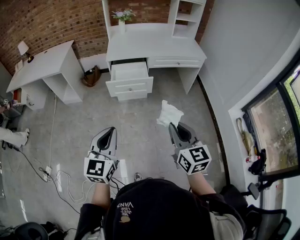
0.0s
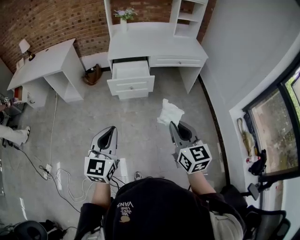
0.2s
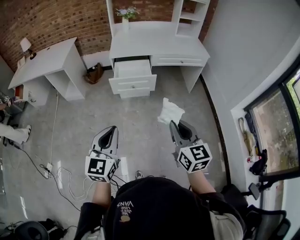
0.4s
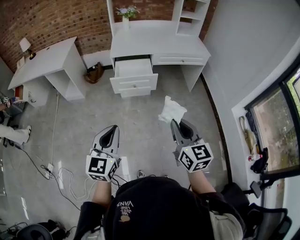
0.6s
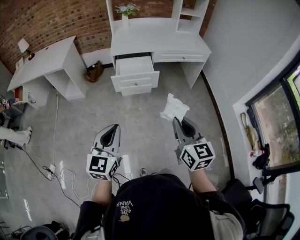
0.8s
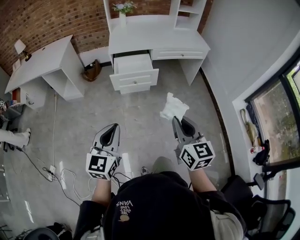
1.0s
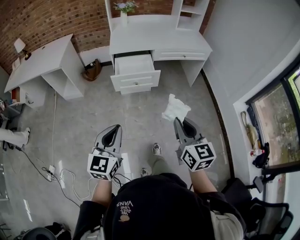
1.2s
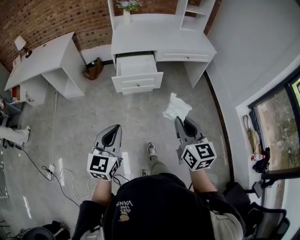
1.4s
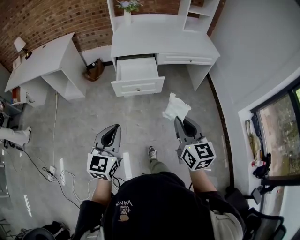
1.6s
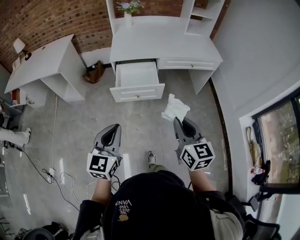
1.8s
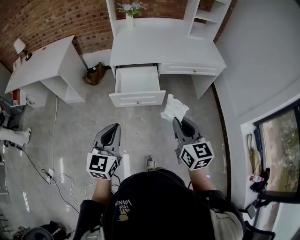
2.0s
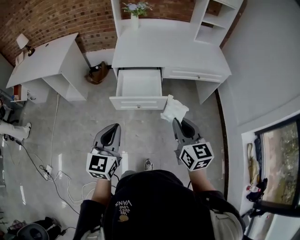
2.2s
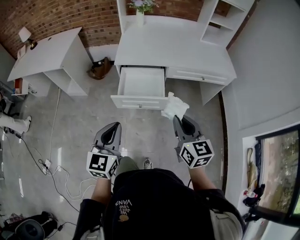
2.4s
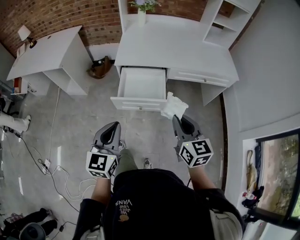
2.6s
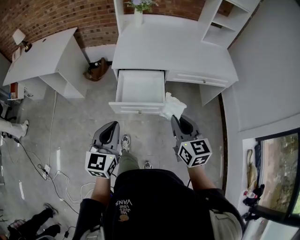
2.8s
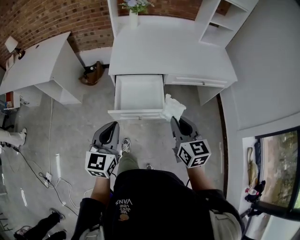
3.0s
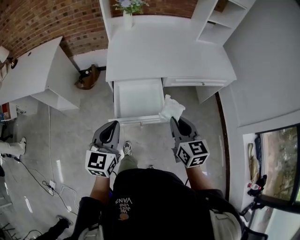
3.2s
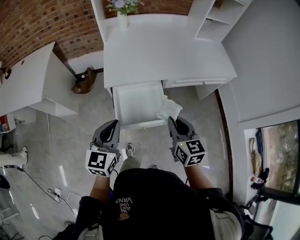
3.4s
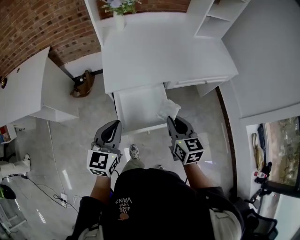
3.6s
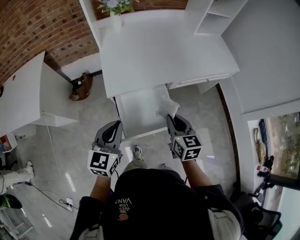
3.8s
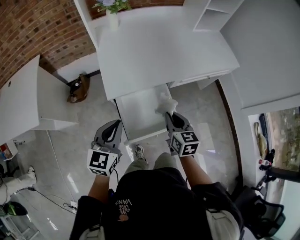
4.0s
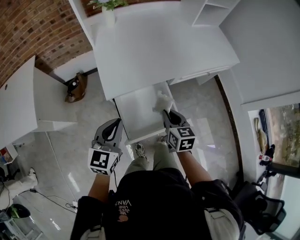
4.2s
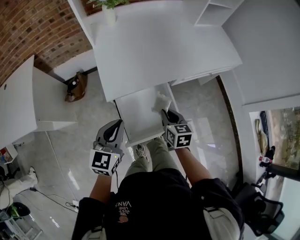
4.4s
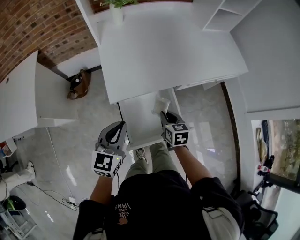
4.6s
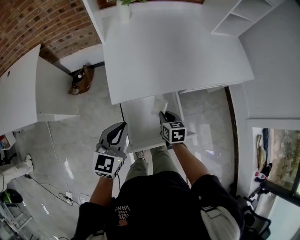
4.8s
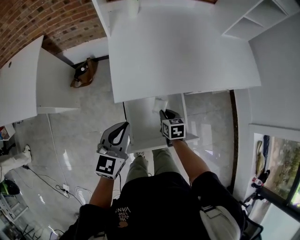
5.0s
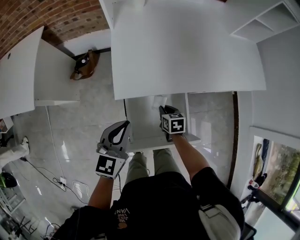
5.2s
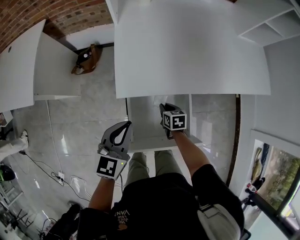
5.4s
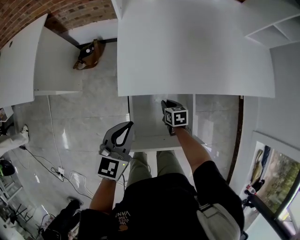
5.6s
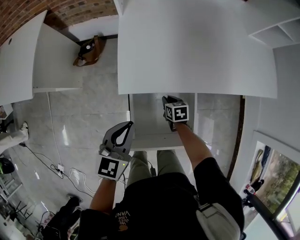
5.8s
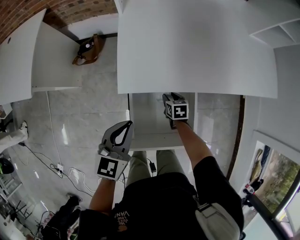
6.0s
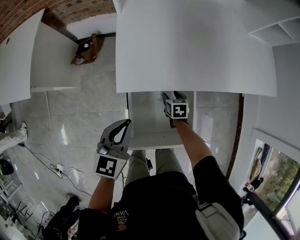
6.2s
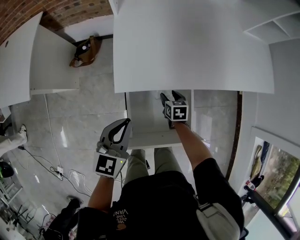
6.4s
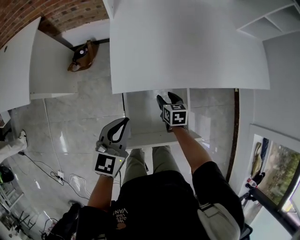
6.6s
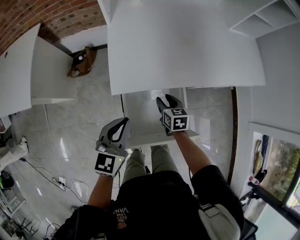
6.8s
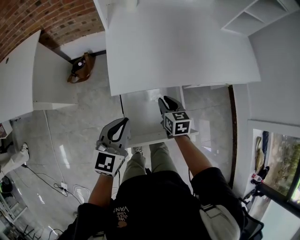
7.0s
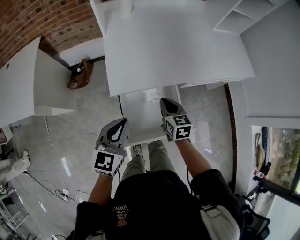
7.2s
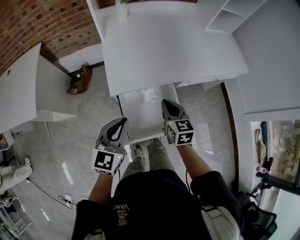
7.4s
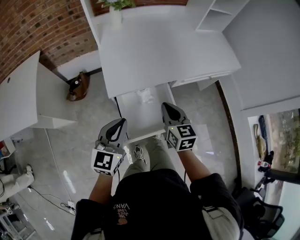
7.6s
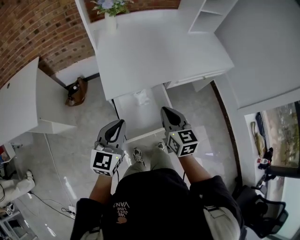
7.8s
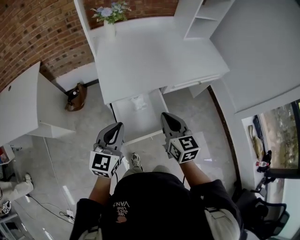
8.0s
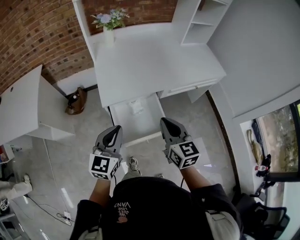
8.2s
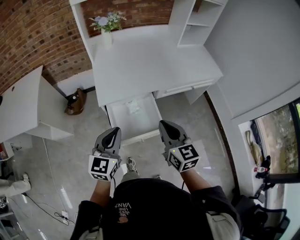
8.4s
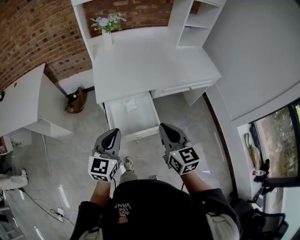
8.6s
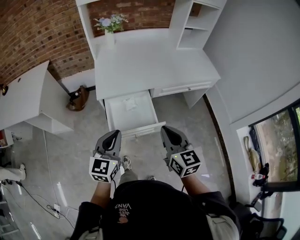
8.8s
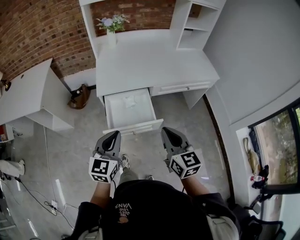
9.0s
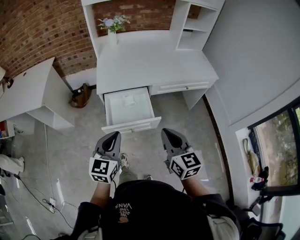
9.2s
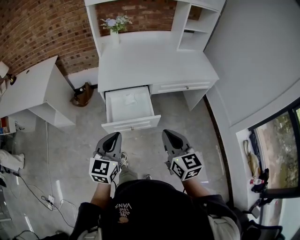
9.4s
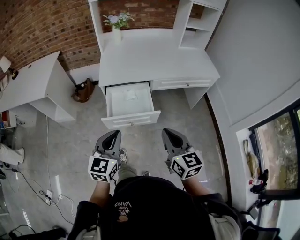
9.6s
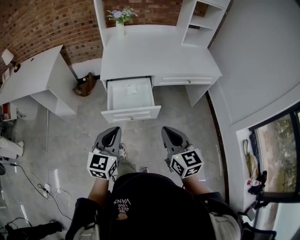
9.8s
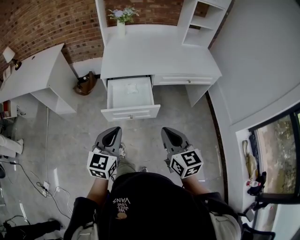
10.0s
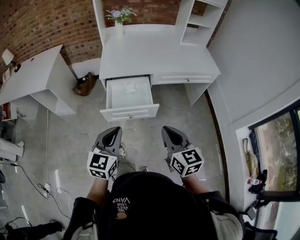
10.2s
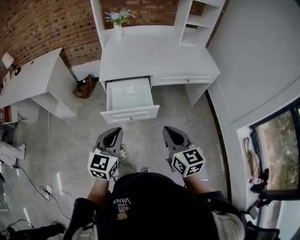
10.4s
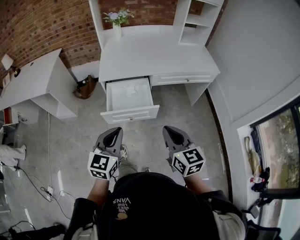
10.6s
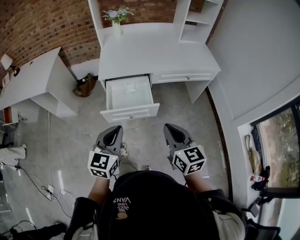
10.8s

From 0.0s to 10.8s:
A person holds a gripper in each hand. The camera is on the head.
From 0.0s to 1.6s: Both grippers travel together forward, roughly 15 cm.
From 1.6s to 3.0s: Both grippers travel together forward, about 30 cm.
From 3.0s to 4.6s: The right gripper travels forward, downward and to the left by roughly 35 cm, and swivels about 30 degrees. The left gripper shifts roughly 30 cm forward and to the left, and changes its angle by approximately 20 degrees.
From 4.6s to 6.2s: The left gripper heads downward, covering roughly 5 cm, while the right gripper moves downward and forward, roughly 25 cm, and opens its fingers.
From 6.2s to 7.8s: The left gripper travels upward and backward by some 15 cm. The right gripper shifts some 40 cm upward and backward, angles its fingers upward, by roughly 40 degrees, and closes.
From 7.8s to 9.2s: The left gripper goes roughly 25 cm backward and to the right, while the right gripper goes about 30 cm backward, to the right and upward.
From 9.2s to 10.8s: Both grippers move backward, roughly 5 cm.

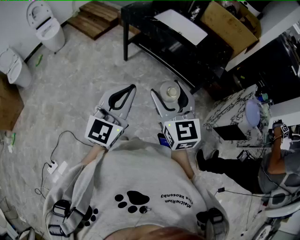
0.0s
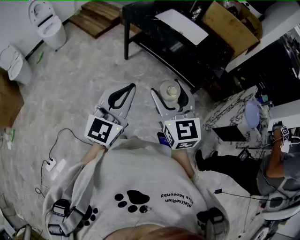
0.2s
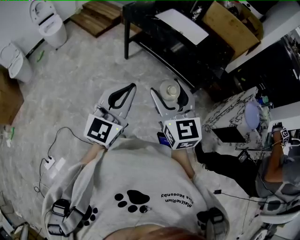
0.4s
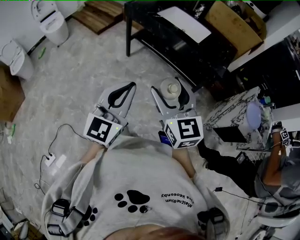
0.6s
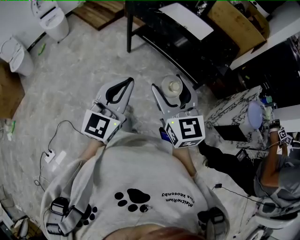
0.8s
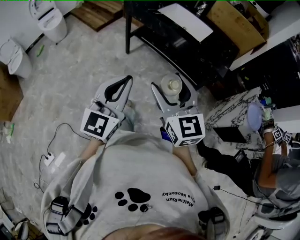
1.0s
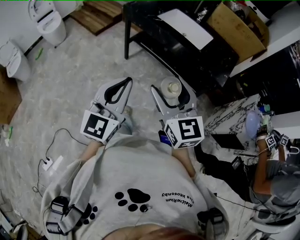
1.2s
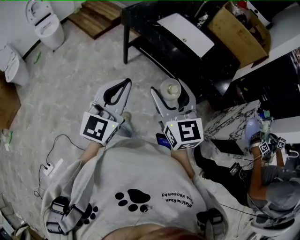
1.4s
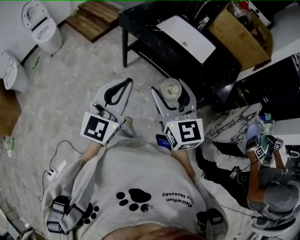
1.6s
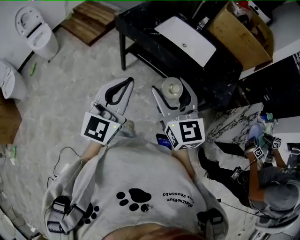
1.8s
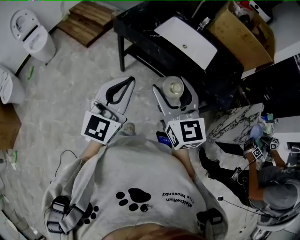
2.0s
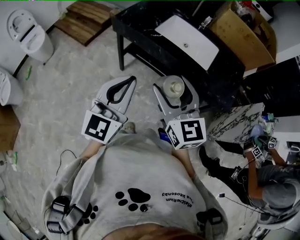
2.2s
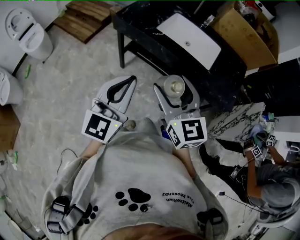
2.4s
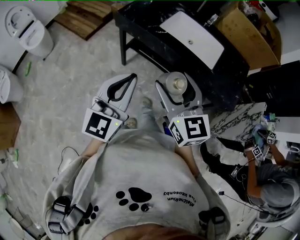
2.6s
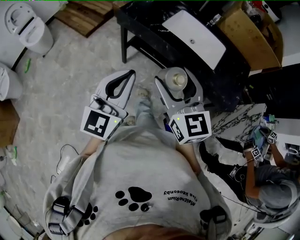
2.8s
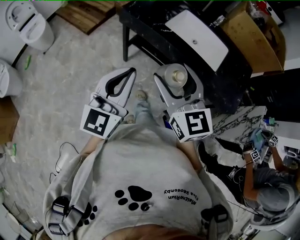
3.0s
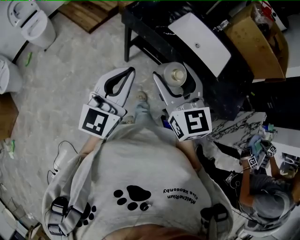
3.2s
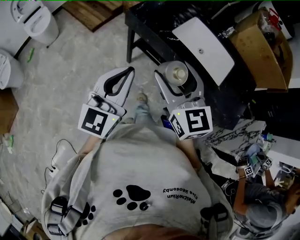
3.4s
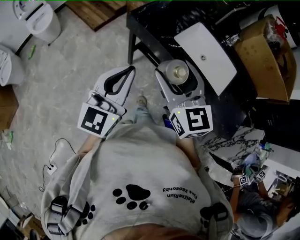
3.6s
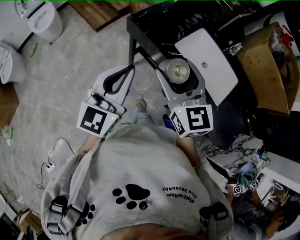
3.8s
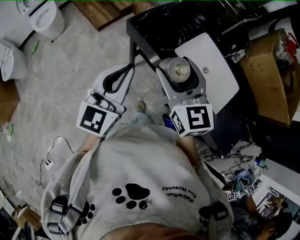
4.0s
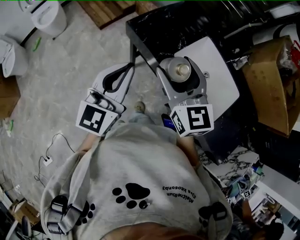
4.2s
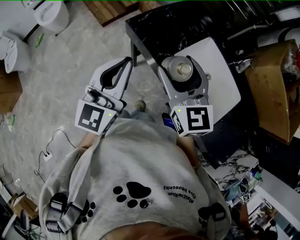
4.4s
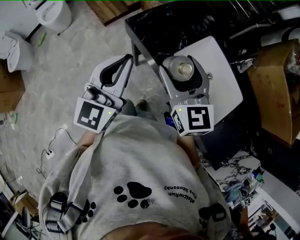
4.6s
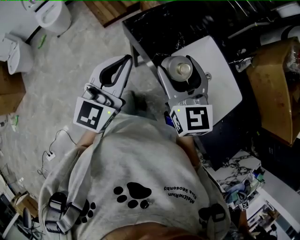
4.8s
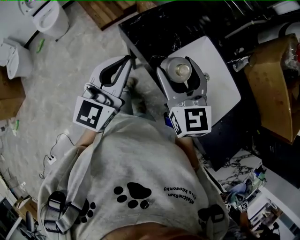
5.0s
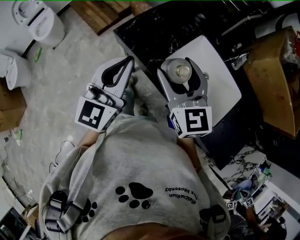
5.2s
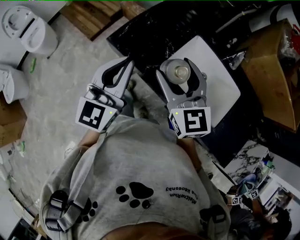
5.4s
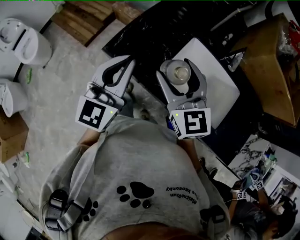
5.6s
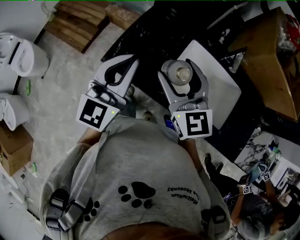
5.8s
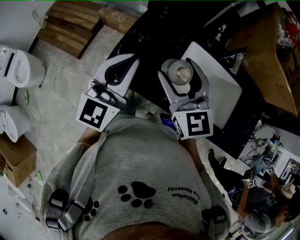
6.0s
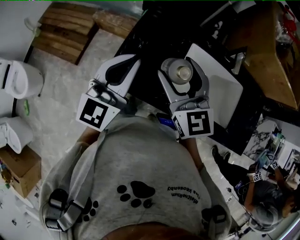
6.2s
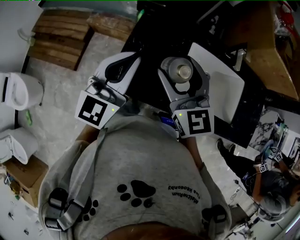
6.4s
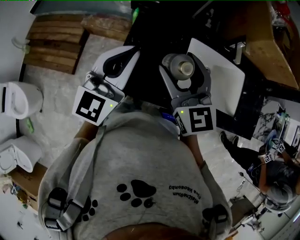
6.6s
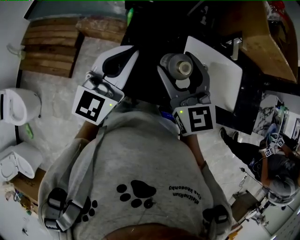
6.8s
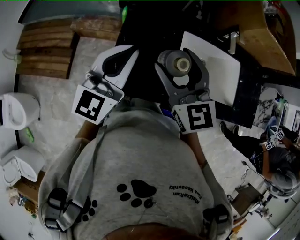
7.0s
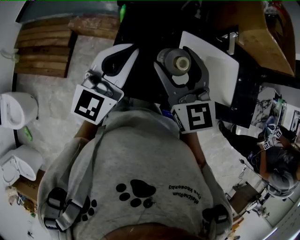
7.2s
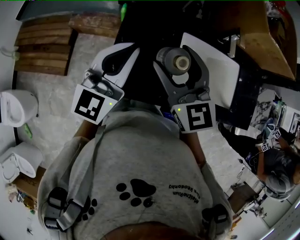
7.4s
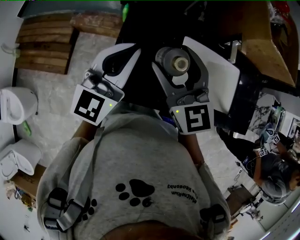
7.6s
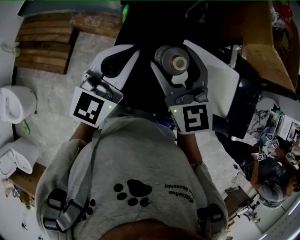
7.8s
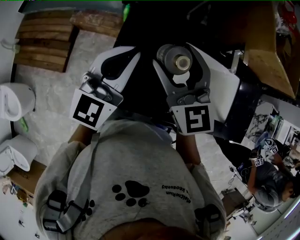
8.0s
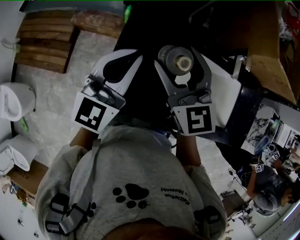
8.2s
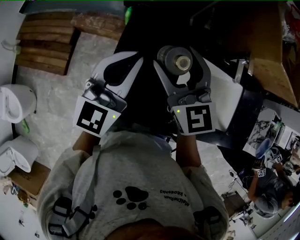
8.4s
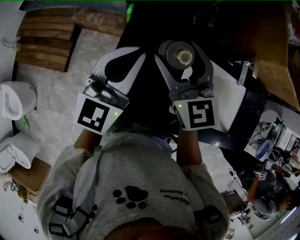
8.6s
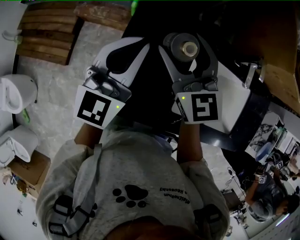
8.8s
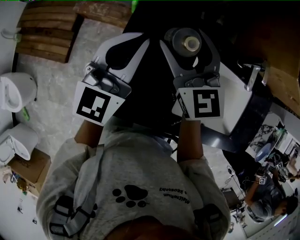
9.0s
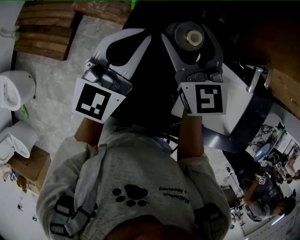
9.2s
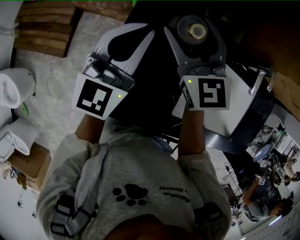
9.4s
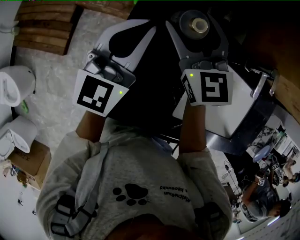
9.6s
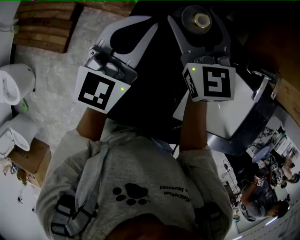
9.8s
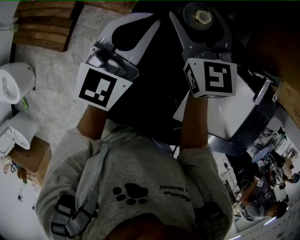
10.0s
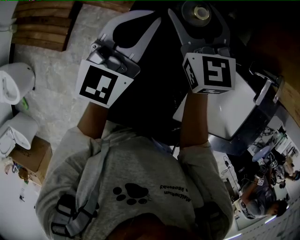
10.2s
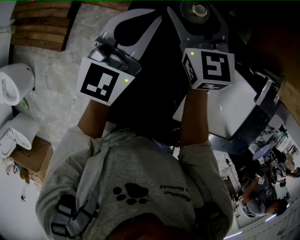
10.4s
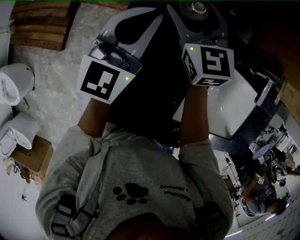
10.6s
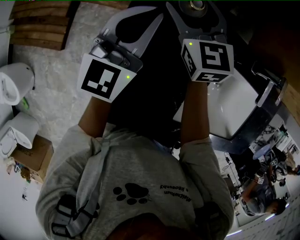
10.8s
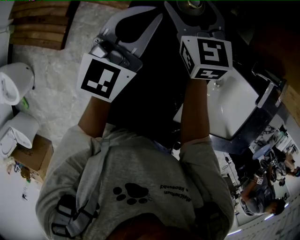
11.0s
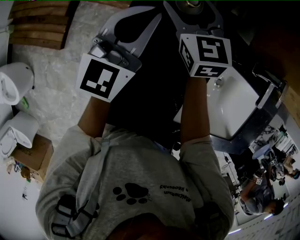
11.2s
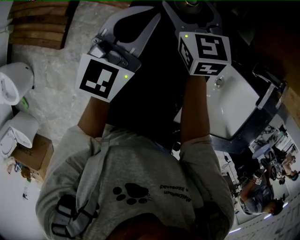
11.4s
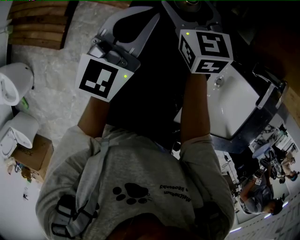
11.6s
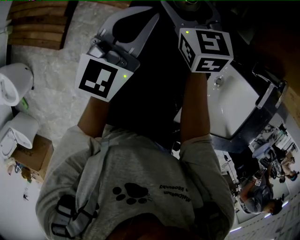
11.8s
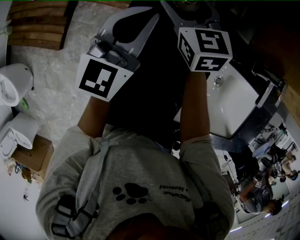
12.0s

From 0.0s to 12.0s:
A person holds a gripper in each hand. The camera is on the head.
From 0.0s to 1.6s: The two grippers go some 20 cm forward.
From 1.6s to 3.0s: The two grippers go approximately 20 cm forward and to the left.
From 3.0s to 4.4s: The grippers both shift forward by some 25 cm.
From 4.4s to 6.0s: The left gripper changes place by some 25 cm, and turns by some 30 degrees. Meanwhile the right gripper ends up approximately 15 cm from where it was, and swivels approximately 20 degrees.
From 6.0s to 7.6s: The right gripper heads forward and to the left, covering about 10 cm. The left gripper is displaced forward by some 10 cm.
From 7.6s to 9.0s: Both grippers move forward and downward, some 15 cm.
From 9.0s to 10.4s: The two grippers go about 10 cm forward and downward.
From 10.4s to 12.0s: The right gripper goes approximately 5 cm downward.

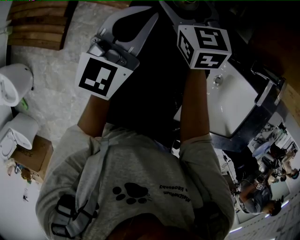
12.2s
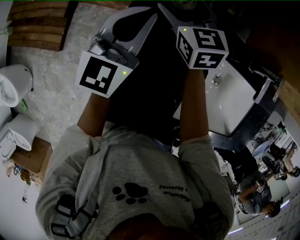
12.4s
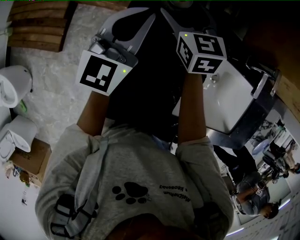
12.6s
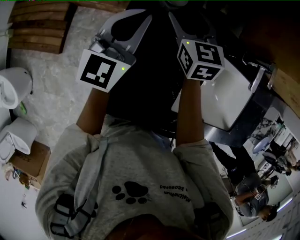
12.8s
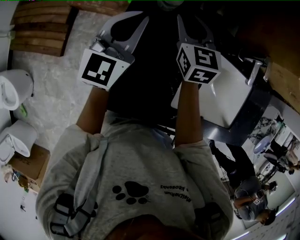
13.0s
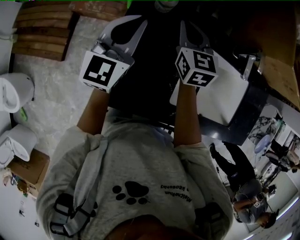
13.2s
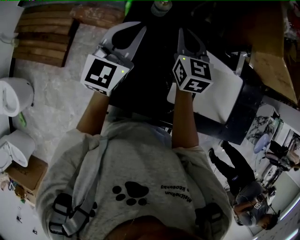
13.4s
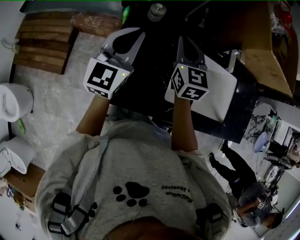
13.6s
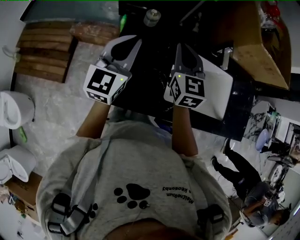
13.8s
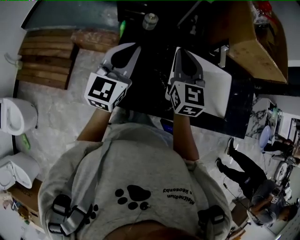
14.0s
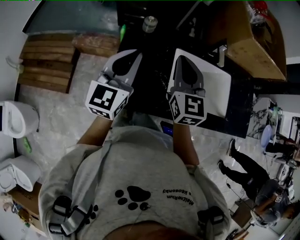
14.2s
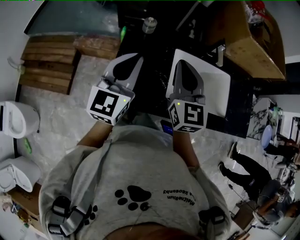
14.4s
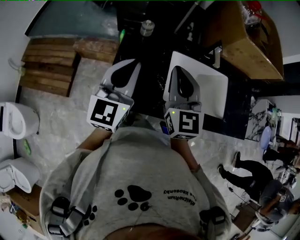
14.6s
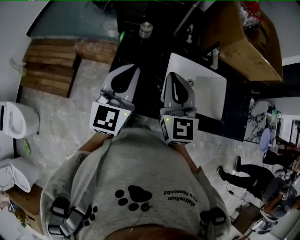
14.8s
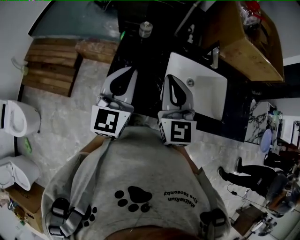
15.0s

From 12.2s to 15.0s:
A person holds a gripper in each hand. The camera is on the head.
From 12.2s to 13.6s: The right gripper is displaced backward, upward and to the right by roughly 25 cm, turns by some 20 degrees, and closes, while the left gripper moves backward and upward, roughly 15 cm.
From 13.6s to 15.0s: The grippers both shift backward and upward by about 20 cm.
